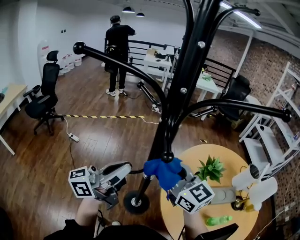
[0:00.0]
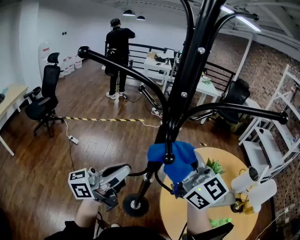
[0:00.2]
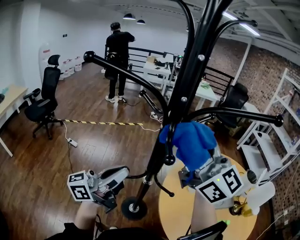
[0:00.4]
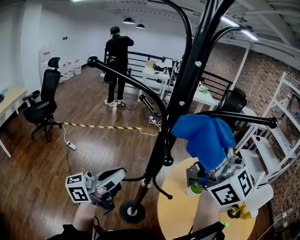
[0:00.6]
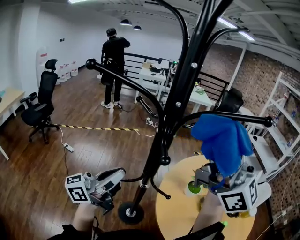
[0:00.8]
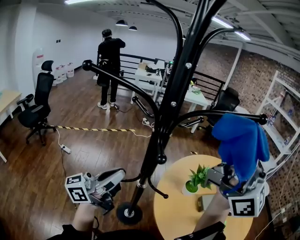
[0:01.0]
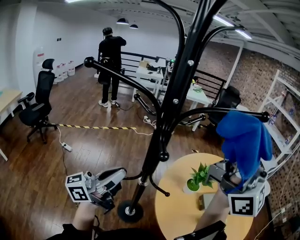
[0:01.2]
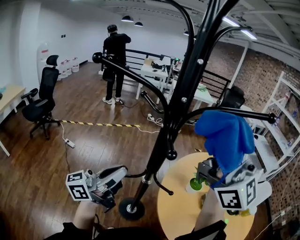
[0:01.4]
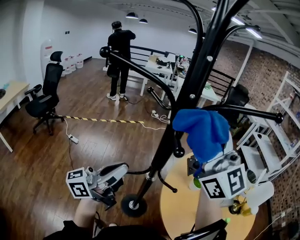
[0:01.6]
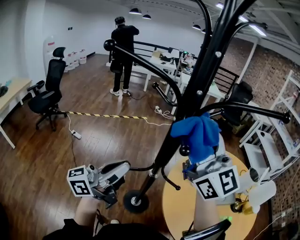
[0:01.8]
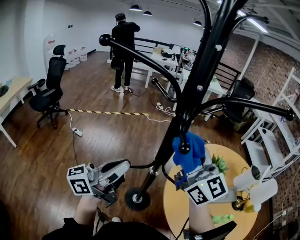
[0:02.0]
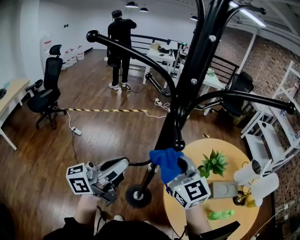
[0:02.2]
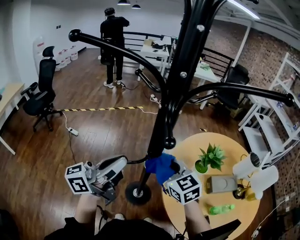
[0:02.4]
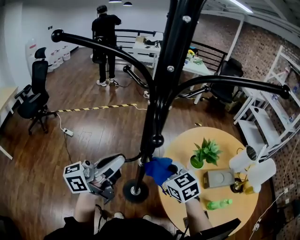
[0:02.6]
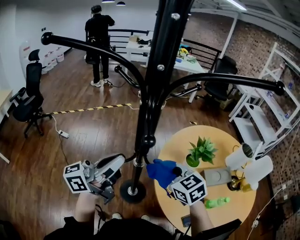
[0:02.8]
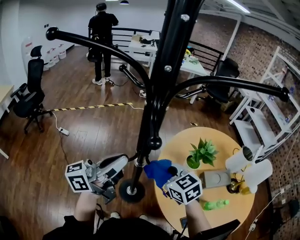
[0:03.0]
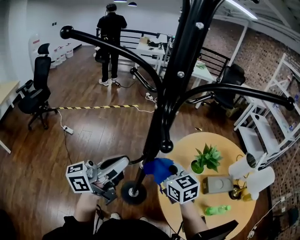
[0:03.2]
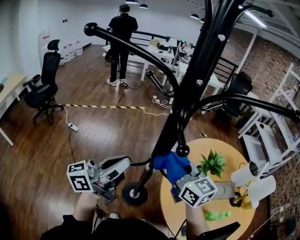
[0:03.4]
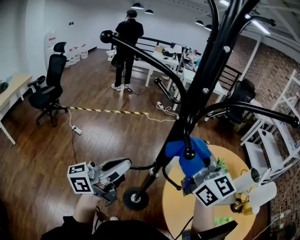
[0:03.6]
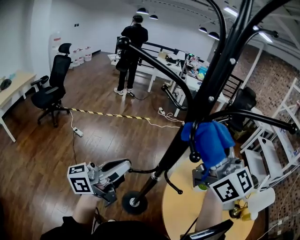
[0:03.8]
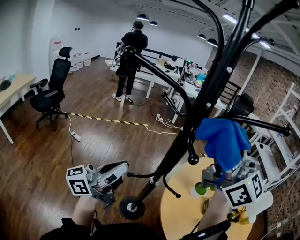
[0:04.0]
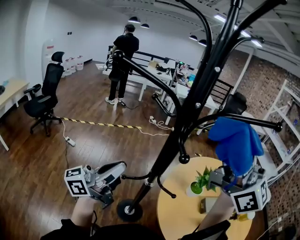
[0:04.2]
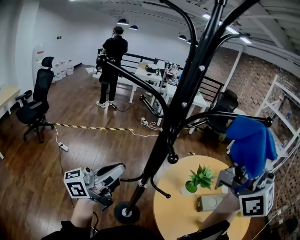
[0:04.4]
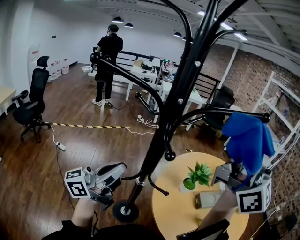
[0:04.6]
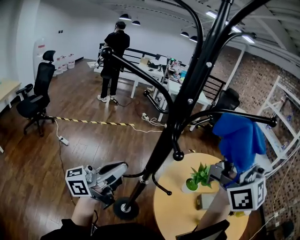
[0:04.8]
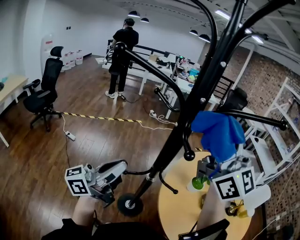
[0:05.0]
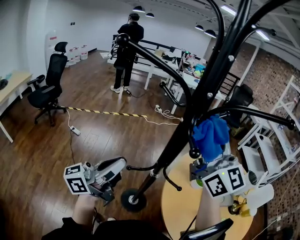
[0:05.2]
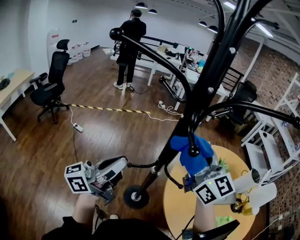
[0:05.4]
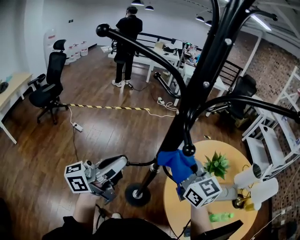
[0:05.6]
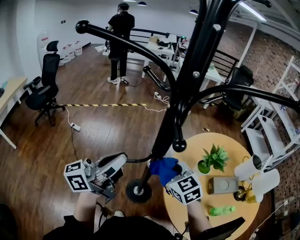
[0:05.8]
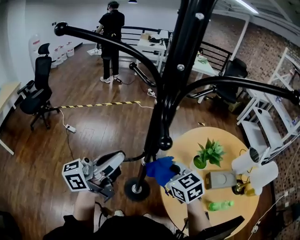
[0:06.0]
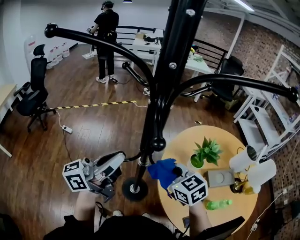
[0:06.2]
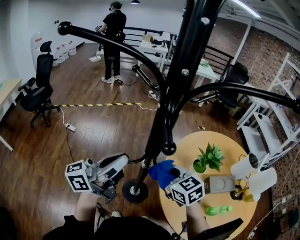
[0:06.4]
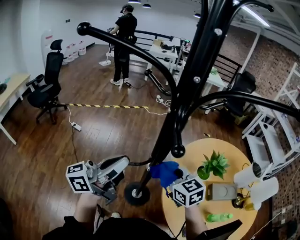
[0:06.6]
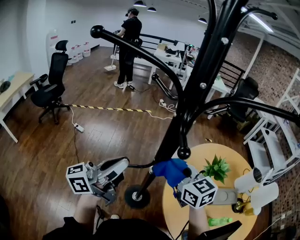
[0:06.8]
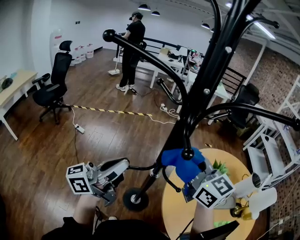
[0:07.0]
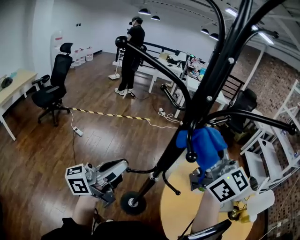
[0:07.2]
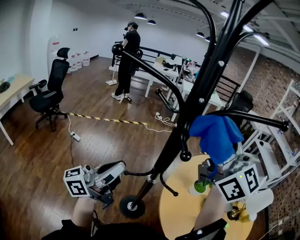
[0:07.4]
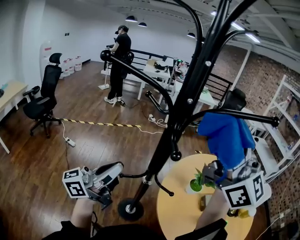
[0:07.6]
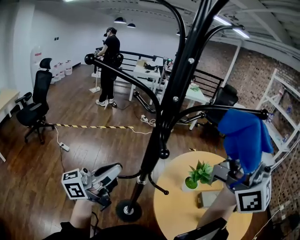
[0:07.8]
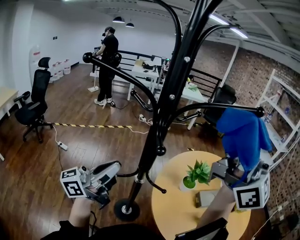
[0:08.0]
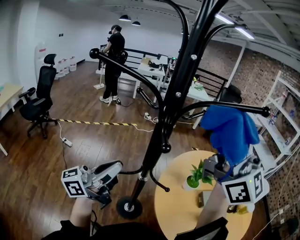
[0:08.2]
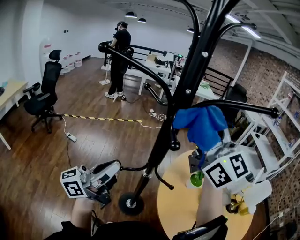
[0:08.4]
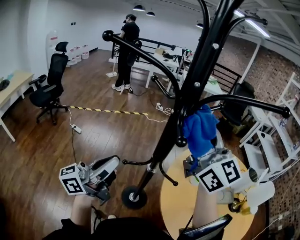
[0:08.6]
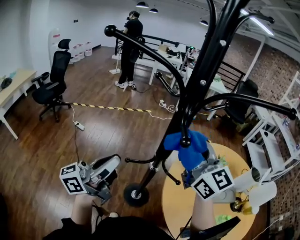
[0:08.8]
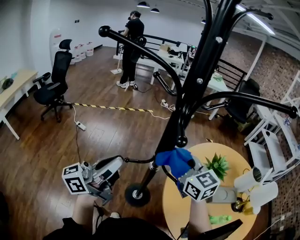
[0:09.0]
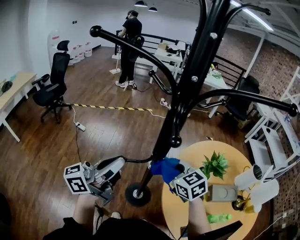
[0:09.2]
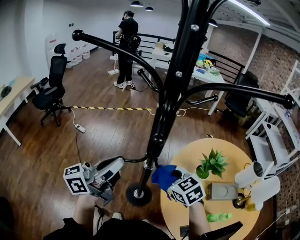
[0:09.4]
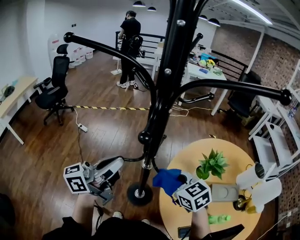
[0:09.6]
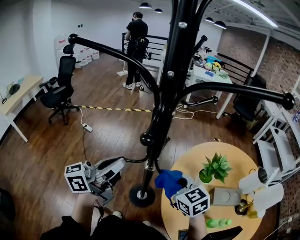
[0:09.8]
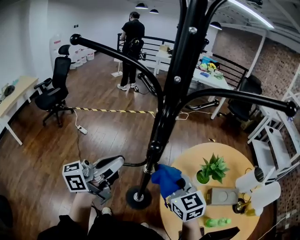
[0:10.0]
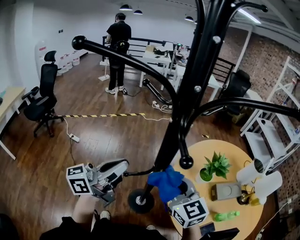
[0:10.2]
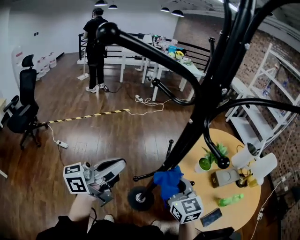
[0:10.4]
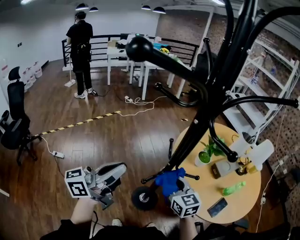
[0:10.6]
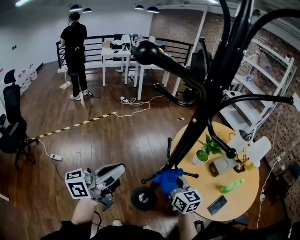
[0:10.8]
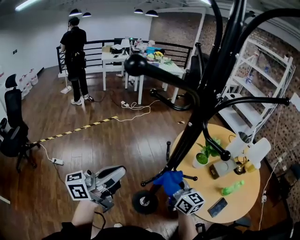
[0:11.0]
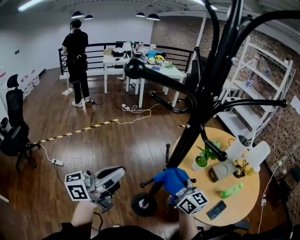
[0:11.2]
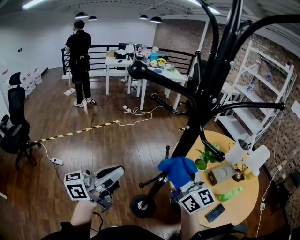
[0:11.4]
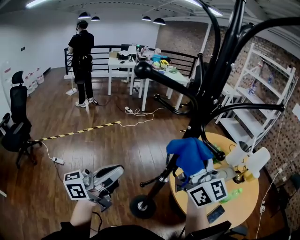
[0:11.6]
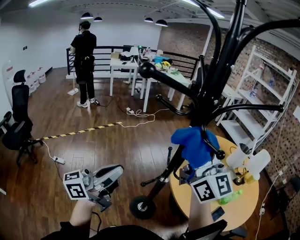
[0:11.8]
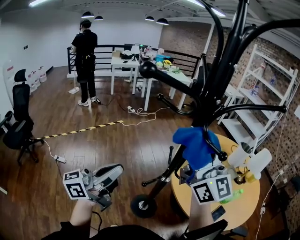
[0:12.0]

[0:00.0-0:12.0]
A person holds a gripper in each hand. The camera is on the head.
0:00.0 to 0:01.6: The right gripper heads upward, covering approximately 25 cm, and tilts its fingers some 30 degrees upward.
0:01.6 to 0:03.0: The left gripper shifts roughly 5 cm to the right, while the right gripper is displaced downward by about 35 cm, and tilts its fingers about 60 degrees downward.
0:03.0 to 0:04.4: The left gripper goes roughly 5 cm to the left; the right gripper shifts approximately 40 cm upward, and points its fingers about 70 degrees further upward.
0:04.4 to 0:06.0: The right gripper heads downward, covering approximately 40 cm, and angles its fingers downward, by some 70 degrees.
0:06.0 to 0:07.6: The right gripper shifts approximately 40 cm upward, and points its fingers some 60 degrees further upward.
0:07.6 to 0:09.0: The right gripper moves downward, some 30 cm, and angles its fingers downward, by approximately 40 degrees.
0:09.0 to 0:10.4: The right gripper goes up and down, about 10 cm each way, reversing 2 times, and swivels some 30 degrees, while the left gripper changes place by about 10 cm, and turns by about 20 degrees.
0:10.4 to 0:12.0: The right gripper heads upward, covering about 30 cm, and tips its fingers upward by approximately 40 degrees.

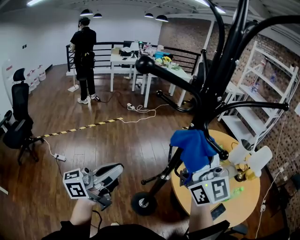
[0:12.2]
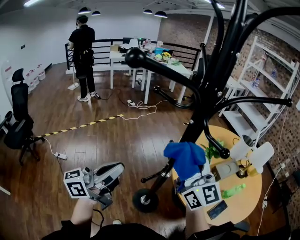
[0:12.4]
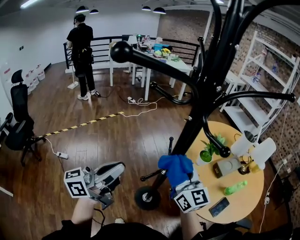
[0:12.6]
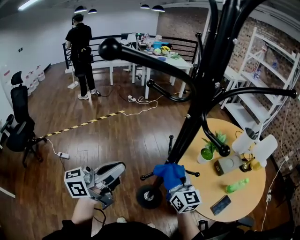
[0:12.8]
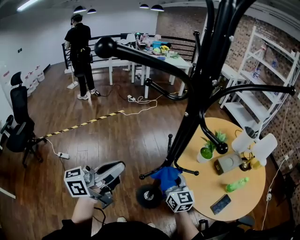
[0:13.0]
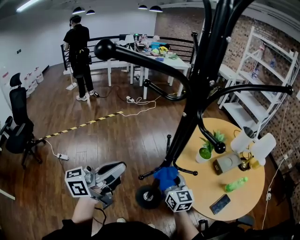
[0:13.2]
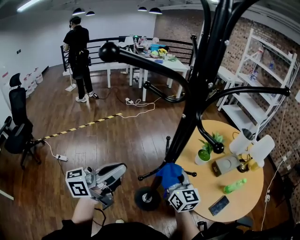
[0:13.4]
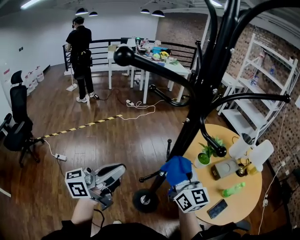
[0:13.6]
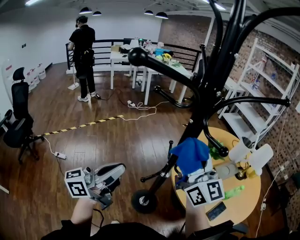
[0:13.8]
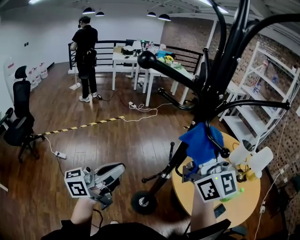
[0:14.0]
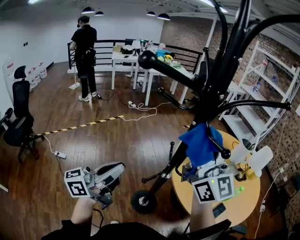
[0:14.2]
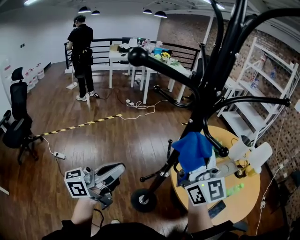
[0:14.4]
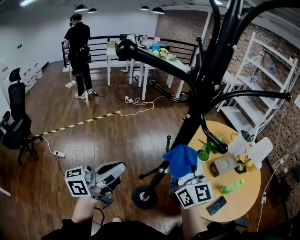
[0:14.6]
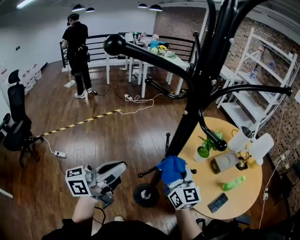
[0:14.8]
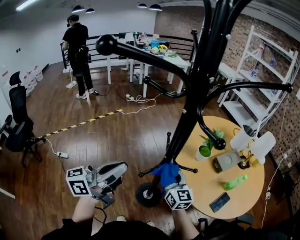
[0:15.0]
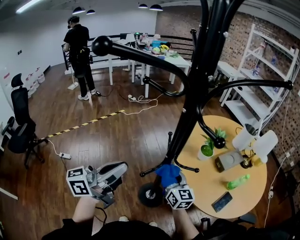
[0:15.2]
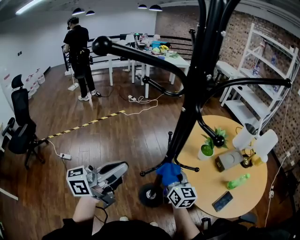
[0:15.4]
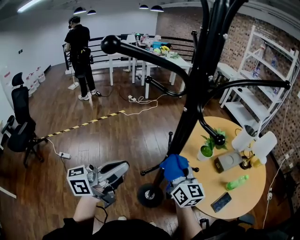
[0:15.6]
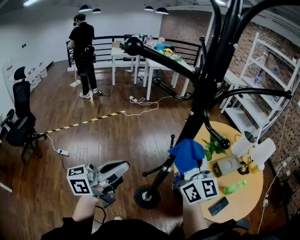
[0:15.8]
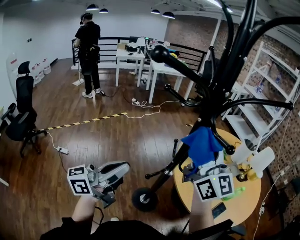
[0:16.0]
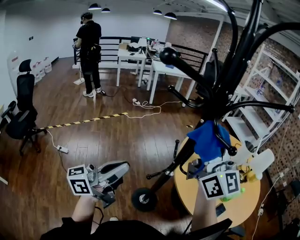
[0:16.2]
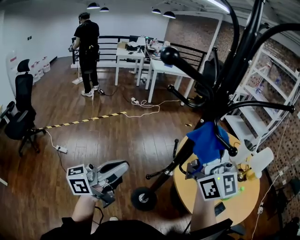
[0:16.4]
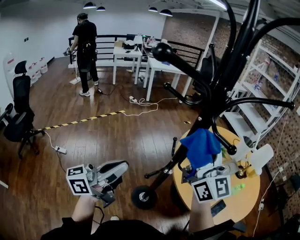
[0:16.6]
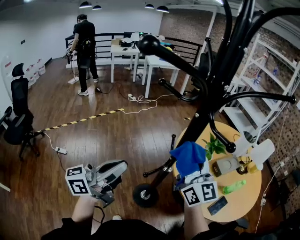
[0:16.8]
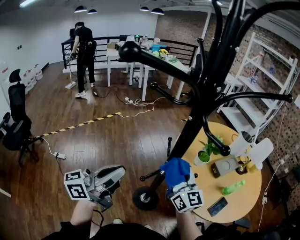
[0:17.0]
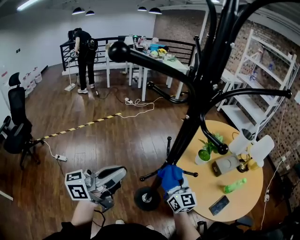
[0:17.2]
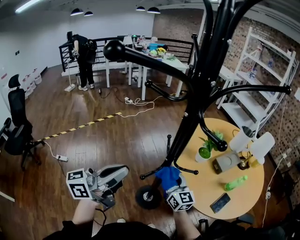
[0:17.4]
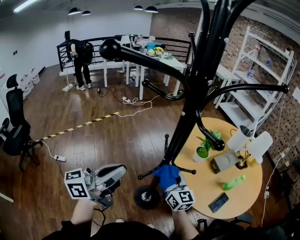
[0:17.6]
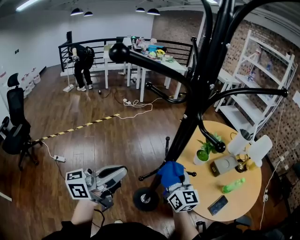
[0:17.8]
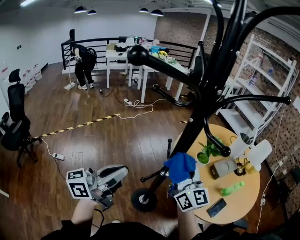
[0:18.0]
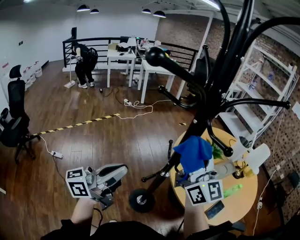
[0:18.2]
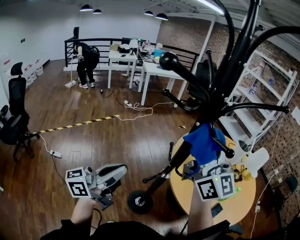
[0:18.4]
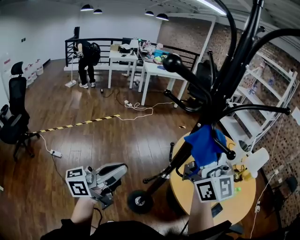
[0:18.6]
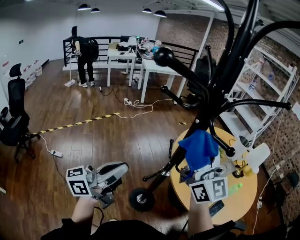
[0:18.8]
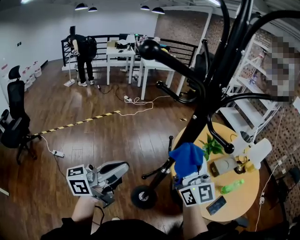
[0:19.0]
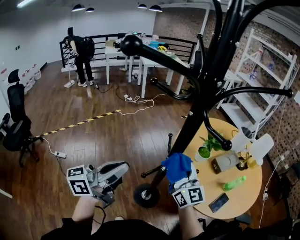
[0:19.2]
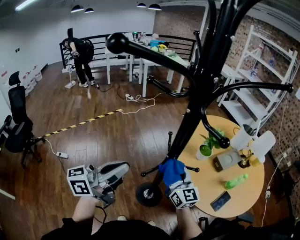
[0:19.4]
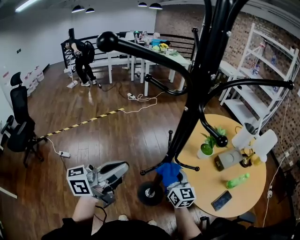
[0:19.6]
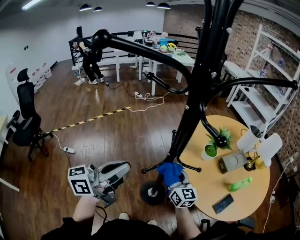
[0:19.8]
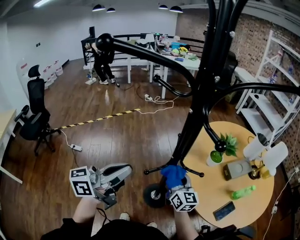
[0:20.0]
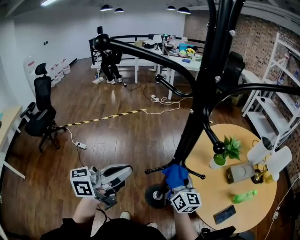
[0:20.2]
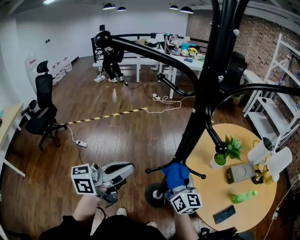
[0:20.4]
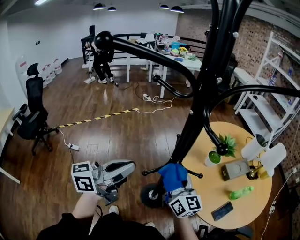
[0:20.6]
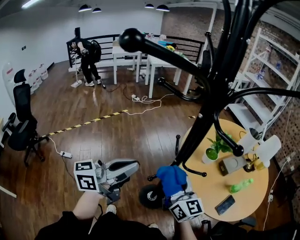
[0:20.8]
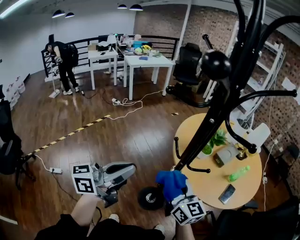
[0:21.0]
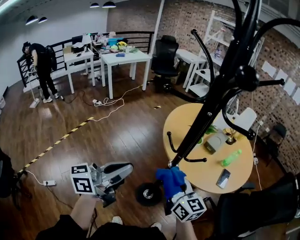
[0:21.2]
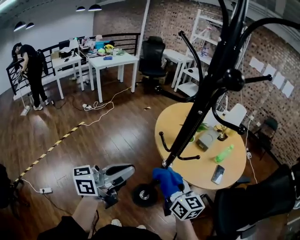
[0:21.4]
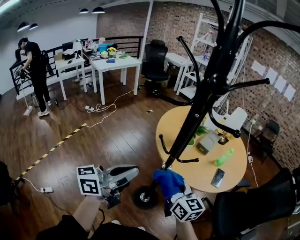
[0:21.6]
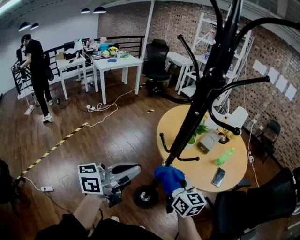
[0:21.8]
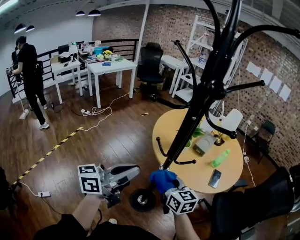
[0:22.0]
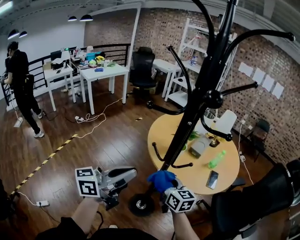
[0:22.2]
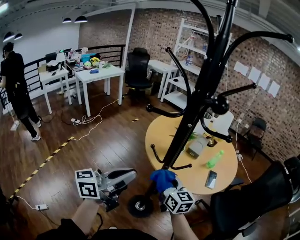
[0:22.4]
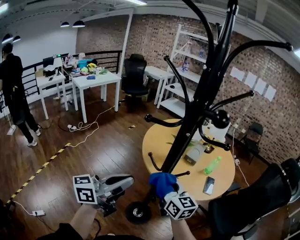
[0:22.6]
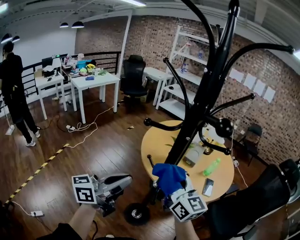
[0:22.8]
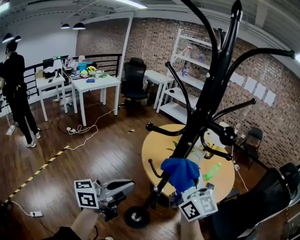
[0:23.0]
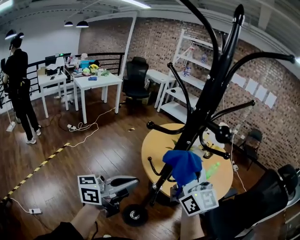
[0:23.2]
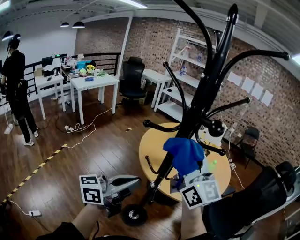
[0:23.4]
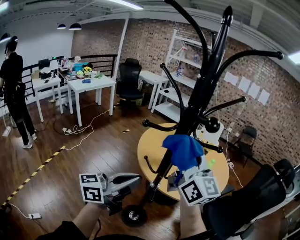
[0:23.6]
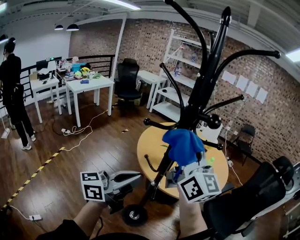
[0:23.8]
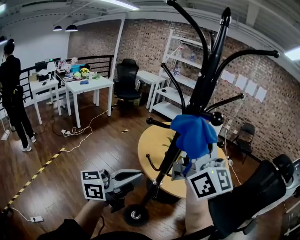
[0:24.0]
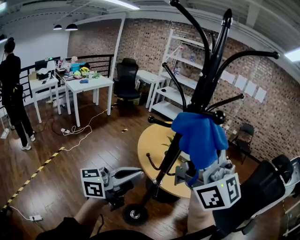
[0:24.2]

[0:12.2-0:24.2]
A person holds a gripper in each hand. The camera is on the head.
0:12.2 to 0:13.8: The right gripper reaches roughly 30 cm downward, then returns.
0:13.8 to 0:15.2: The right gripper heads downward, covering about 30 cm, and turns by approximately 30 degrees.
0:15.2 to 0:16.6: The right gripper travels upward by roughly 30 cm, and rotates approximately 30 degrees.
0:16.6 to 0:18.2: The right gripper moves approximately 30 cm downward and comes back.
0:18.2 to 0:19.8: The right gripper is displaced downward by about 30 cm, and swivels some 30 degrees.
0:19.8 to 0:21.2: The left gripper moves approximately 10 cm, and changes its angle by roughly 30 degrees. The right gripper moves about 10 cm, and turns by some 20 degrees.
0:21.2 to 0:22.6: The right gripper heads forward, covering approximately 5 cm; the left gripper changes place by about 5 cm.
0:22.6 to 0:24.2: The right gripper moves upward, approximately 35 cm, and points its fingers about 40 degrees further upward. Meanwhile the left gripper heads upward, covering some 5 cm.
